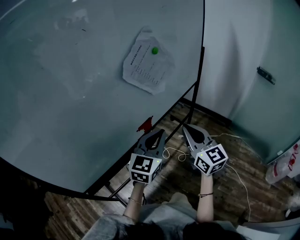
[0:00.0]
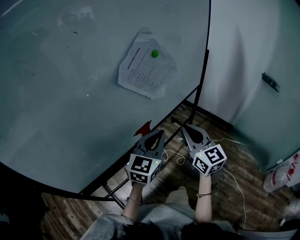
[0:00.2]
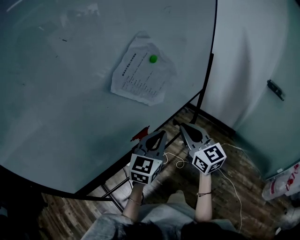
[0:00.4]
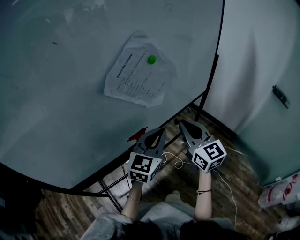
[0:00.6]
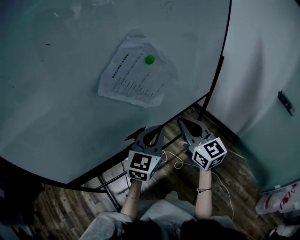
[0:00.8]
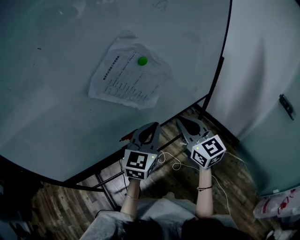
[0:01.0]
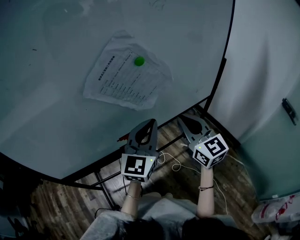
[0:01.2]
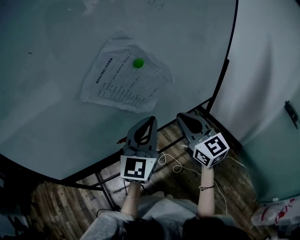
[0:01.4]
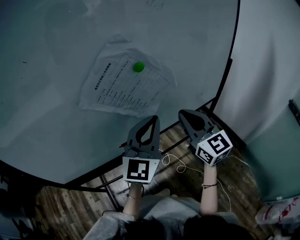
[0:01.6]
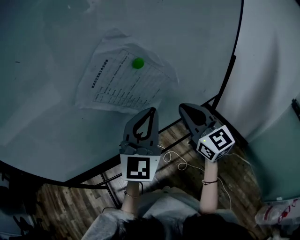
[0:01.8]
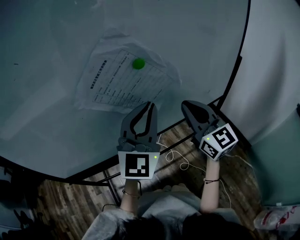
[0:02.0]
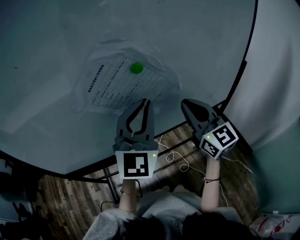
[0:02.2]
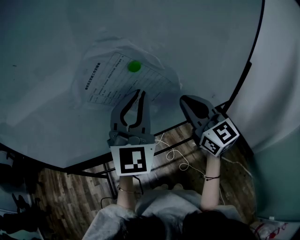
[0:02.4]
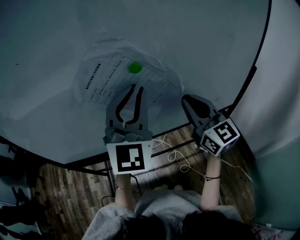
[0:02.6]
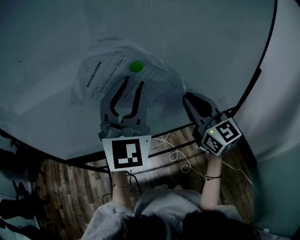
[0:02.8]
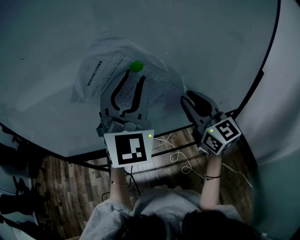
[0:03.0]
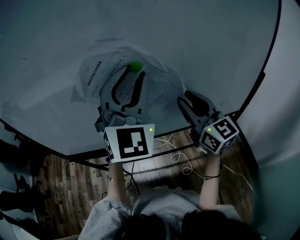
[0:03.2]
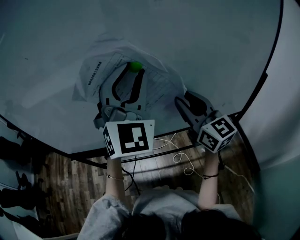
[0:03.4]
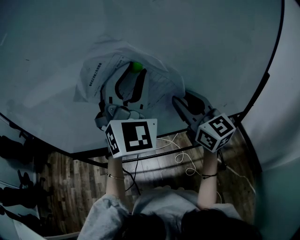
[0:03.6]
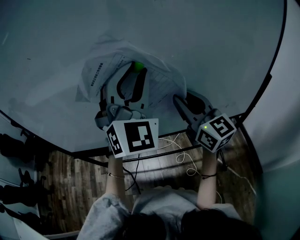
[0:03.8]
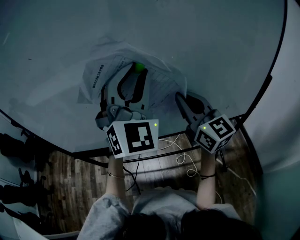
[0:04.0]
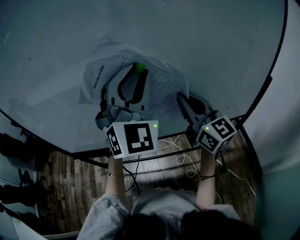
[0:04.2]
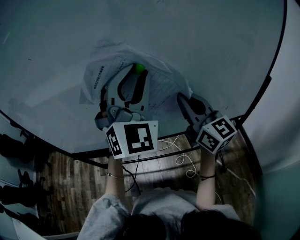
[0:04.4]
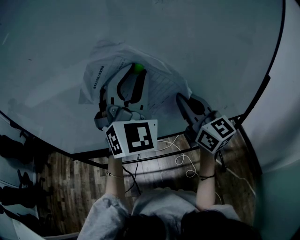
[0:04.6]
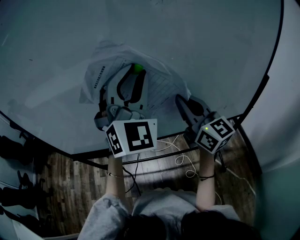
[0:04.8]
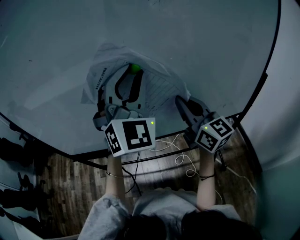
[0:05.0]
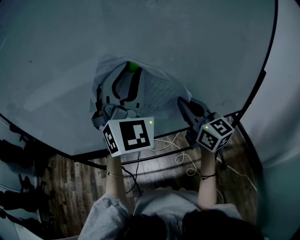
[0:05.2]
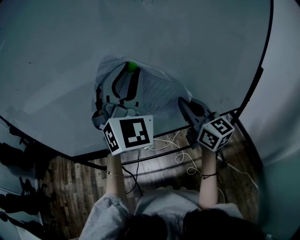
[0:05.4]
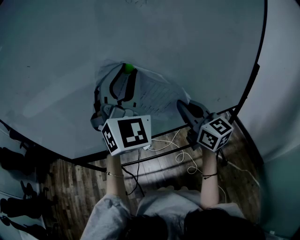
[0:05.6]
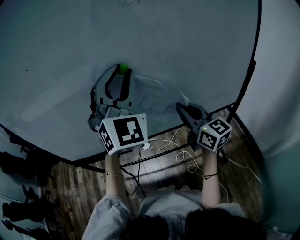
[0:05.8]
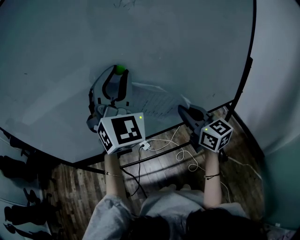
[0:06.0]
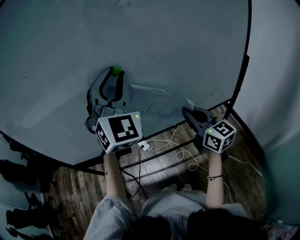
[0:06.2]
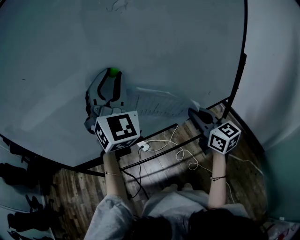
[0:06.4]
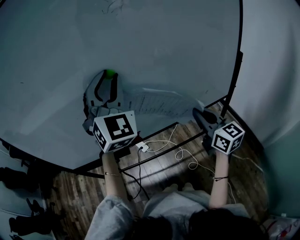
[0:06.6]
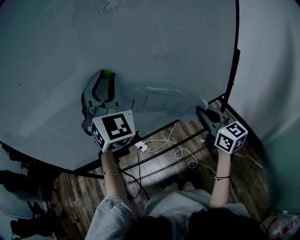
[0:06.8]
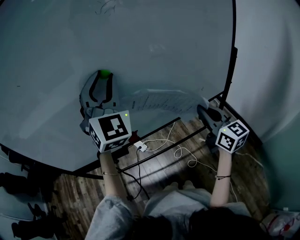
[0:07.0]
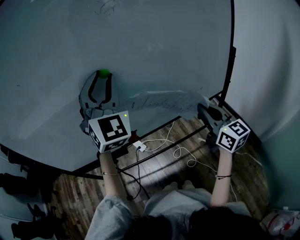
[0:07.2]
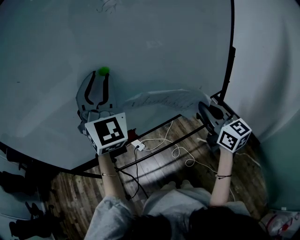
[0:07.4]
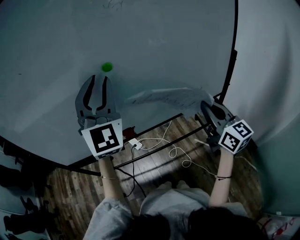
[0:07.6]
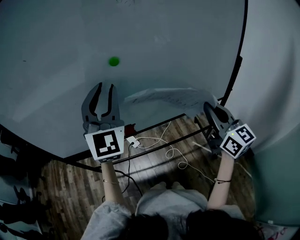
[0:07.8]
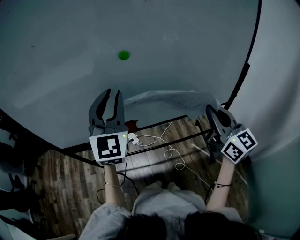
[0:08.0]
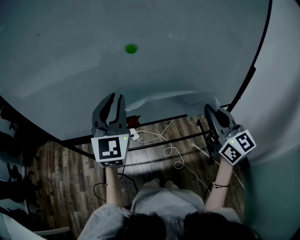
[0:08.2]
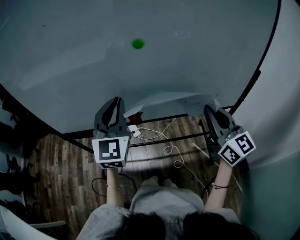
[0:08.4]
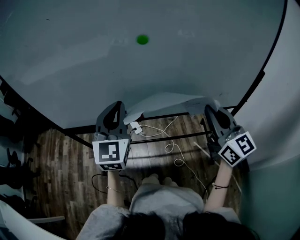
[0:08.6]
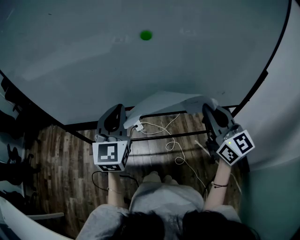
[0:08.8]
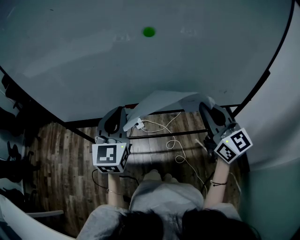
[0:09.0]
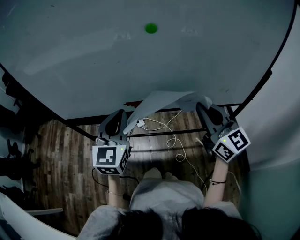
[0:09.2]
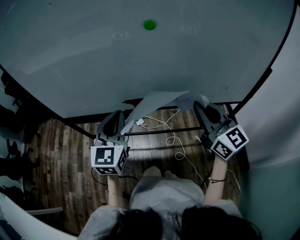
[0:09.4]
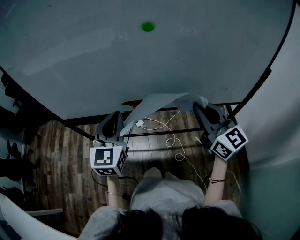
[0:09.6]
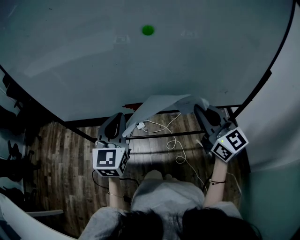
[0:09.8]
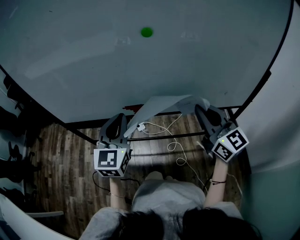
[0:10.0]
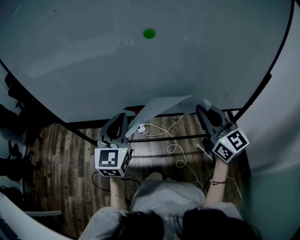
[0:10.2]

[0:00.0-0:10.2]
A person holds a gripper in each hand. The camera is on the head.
0:00.0 to 0:01.4: The right gripper goes approximately 20 cm forward and to the right, and swivels approximately 20 degrees; the left gripper heads forward, to the right and upward, covering about 15 cm, and changes its angle by roughly 30 degrees.
0:01.4 to 0:03.0: The left gripper is displaced upward and forward by about 15 cm, rotates approximately 50 degrees, and opens up, while the right gripper heads forward, covering some 10 cm.
0:03.0 to 0:04.4: The right gripper closes.
0:04.4 to 0:05.8: The right gripper shifts about 5 cm downward.
0:05.8 to 0:07.2: The right gripper goes approximately 15 cm to the right and backward.
0:07.2 to 0:08.8: The right gripper is displaced to the left by roughly 5 cm; the left gripper moves downward, to the left and backward, some 20 cm, swivels some 40 degrees, and closes its fingers.
0:08.8 to 0:10.2: There are only small adjustments of the grippers.

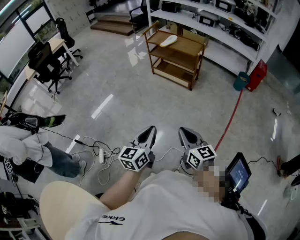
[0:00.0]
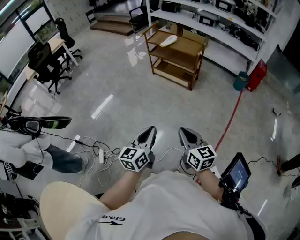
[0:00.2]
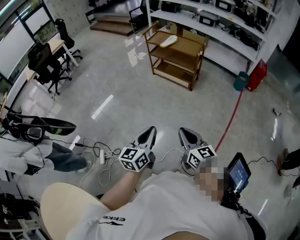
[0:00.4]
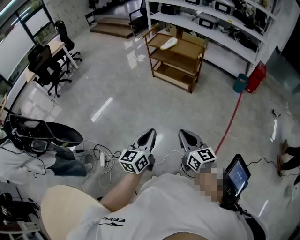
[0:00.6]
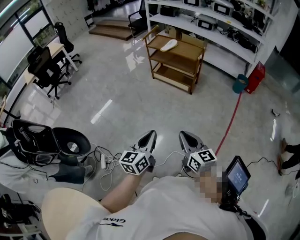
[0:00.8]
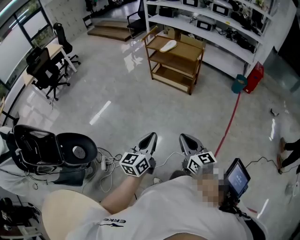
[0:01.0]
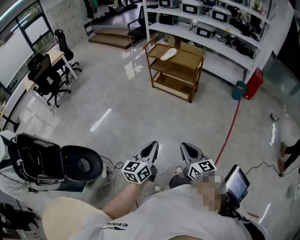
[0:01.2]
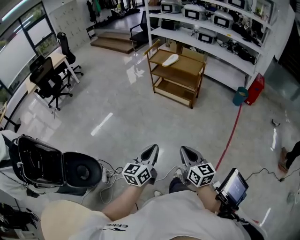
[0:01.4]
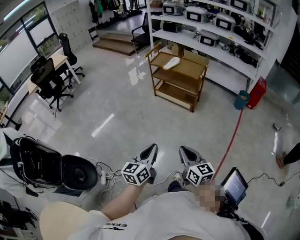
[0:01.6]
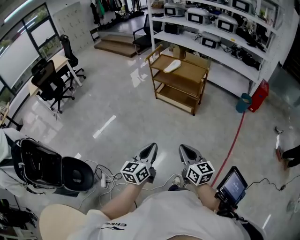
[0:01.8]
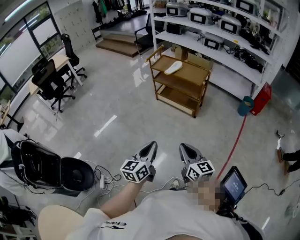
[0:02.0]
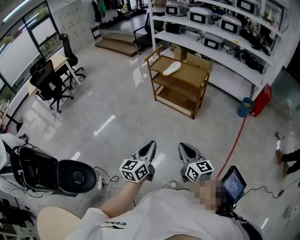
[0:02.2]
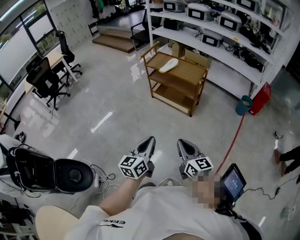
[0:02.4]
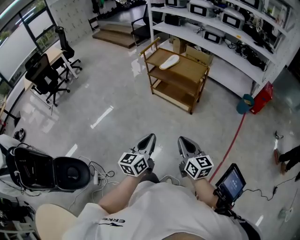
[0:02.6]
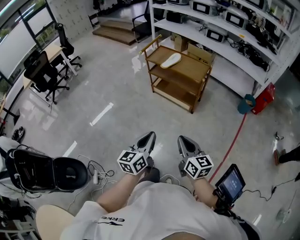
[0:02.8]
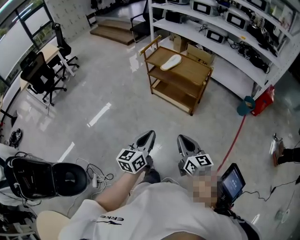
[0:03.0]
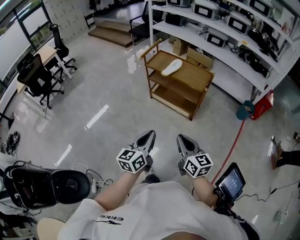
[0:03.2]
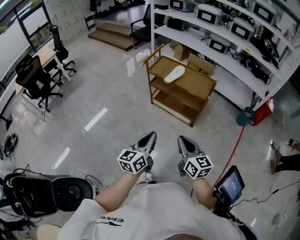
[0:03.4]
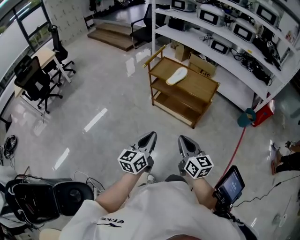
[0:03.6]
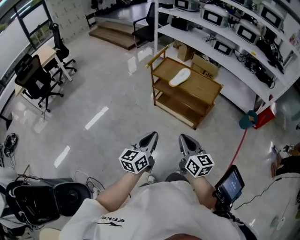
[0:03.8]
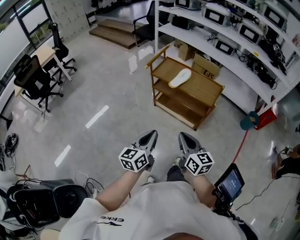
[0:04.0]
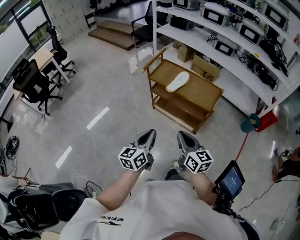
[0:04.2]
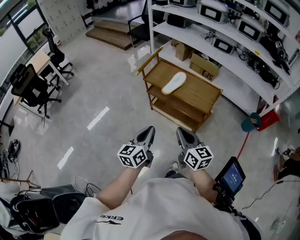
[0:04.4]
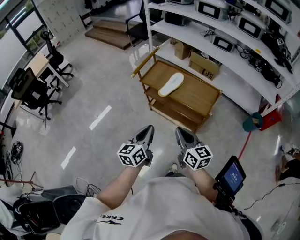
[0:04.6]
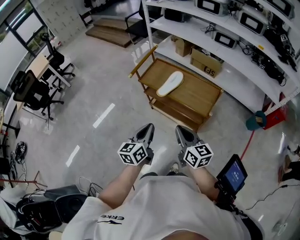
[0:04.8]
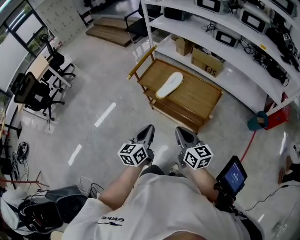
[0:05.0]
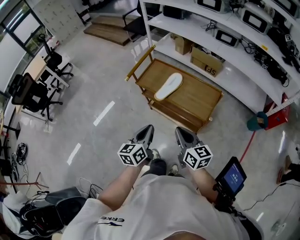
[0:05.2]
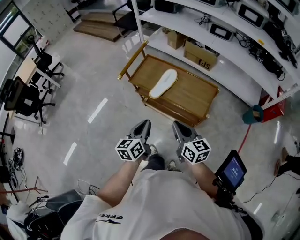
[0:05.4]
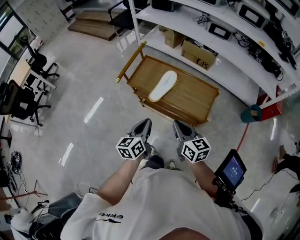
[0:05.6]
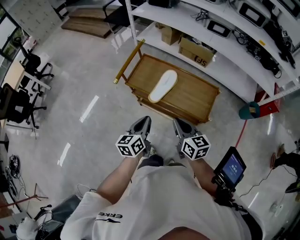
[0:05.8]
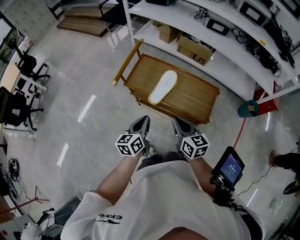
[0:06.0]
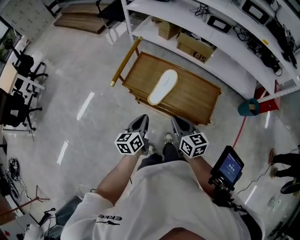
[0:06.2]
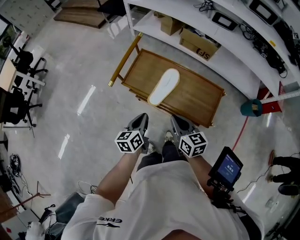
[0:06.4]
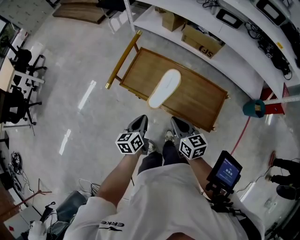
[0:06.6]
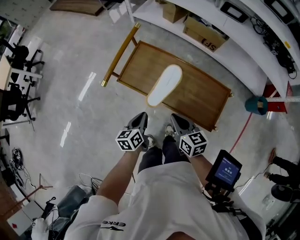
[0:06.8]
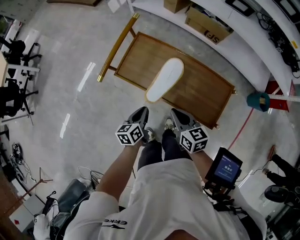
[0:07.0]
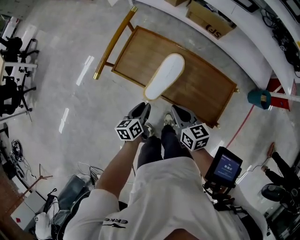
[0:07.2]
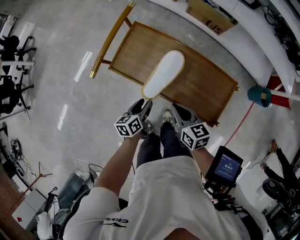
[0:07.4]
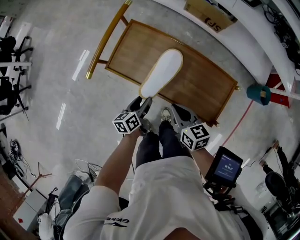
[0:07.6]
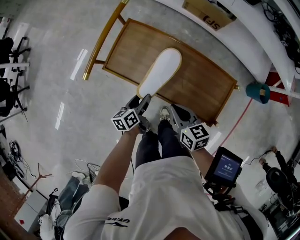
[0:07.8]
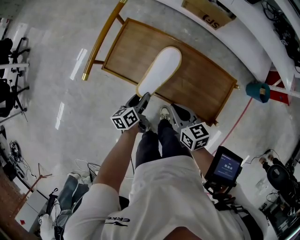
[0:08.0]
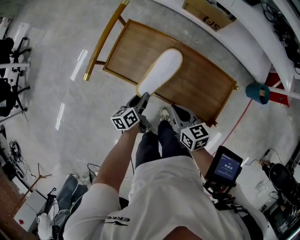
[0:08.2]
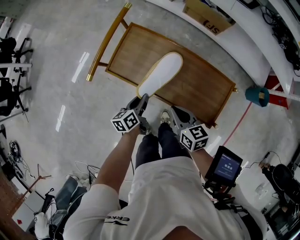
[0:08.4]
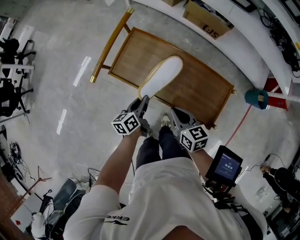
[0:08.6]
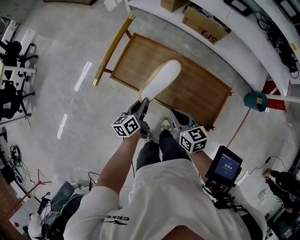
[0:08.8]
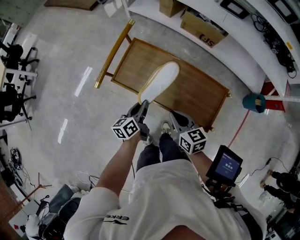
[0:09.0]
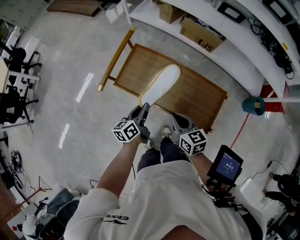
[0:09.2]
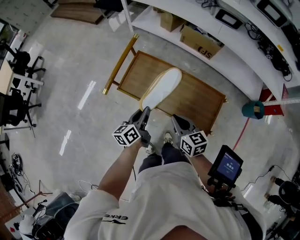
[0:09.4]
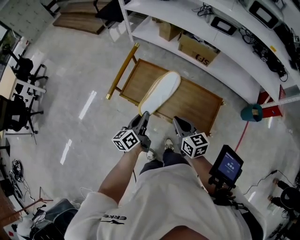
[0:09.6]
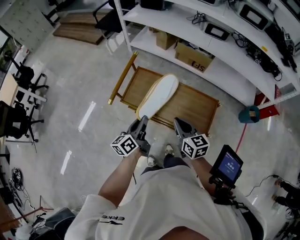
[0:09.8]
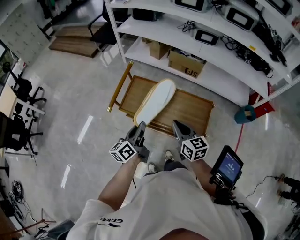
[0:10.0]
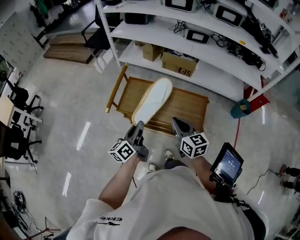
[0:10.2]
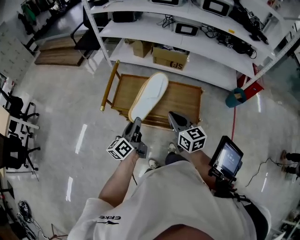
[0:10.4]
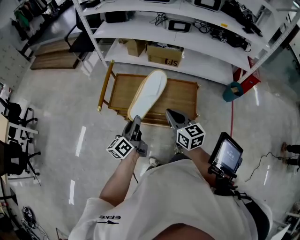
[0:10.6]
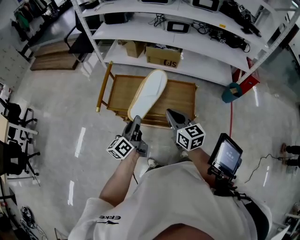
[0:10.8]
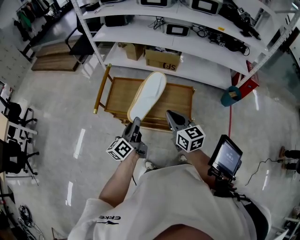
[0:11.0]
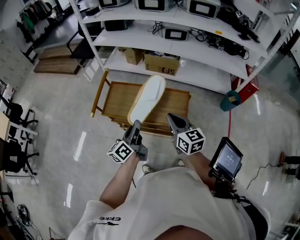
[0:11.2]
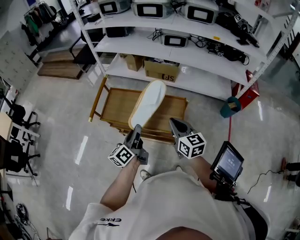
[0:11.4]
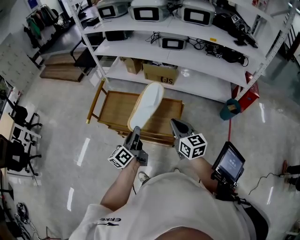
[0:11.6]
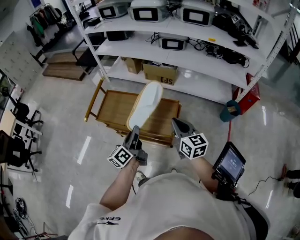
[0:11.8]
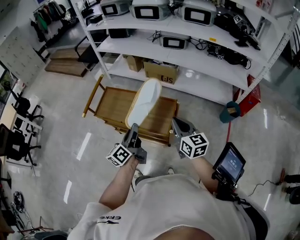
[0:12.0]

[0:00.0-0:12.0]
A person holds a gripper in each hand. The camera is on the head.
0:00.0 to 0:01.6: The two grippers go roughly 5 cm forward.
0:01.6 to 0:03.0: Both grippers move forward, about 25 cm.
0:03.0 to 0:04.4: Both grippers travel together forward, approximately 30 cm.
0:04.4 to 0:06.0: The two grippers go some 25 cm forward.
0:06.0 to 0:07.6: Both grippers move downward and forward, some 25 cm. The left gripper rotates roughly 20 degrees, and opens its fingers.
0:07.6 to 0:09.0: The left gripper heads upward, covering some 10 cm, and closes its fingers.
0:09.0 to 0:10.4: Both grippers travel together upward and backward, roughly 20 cm. The right gripper turns by approximately 20 degrees. The left gripper changes its angle by about 20 degrees.
0:10.4 to 0:12.0: The two grippers go about 25 cm to the right.

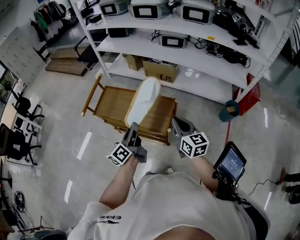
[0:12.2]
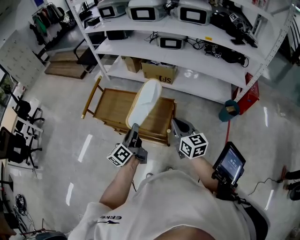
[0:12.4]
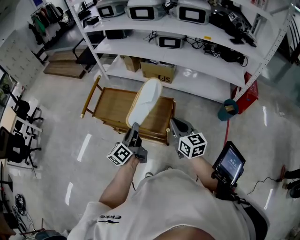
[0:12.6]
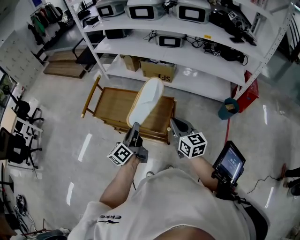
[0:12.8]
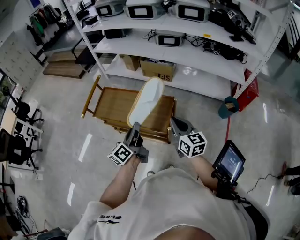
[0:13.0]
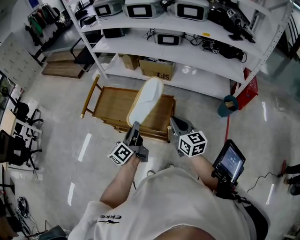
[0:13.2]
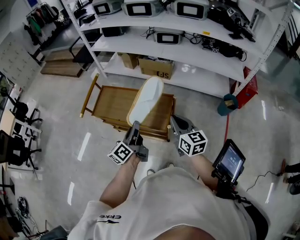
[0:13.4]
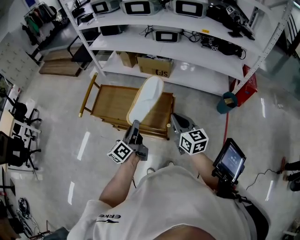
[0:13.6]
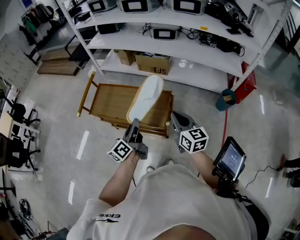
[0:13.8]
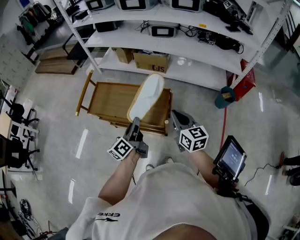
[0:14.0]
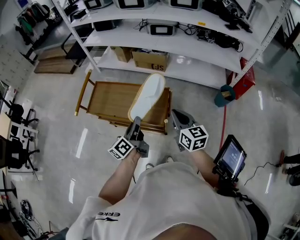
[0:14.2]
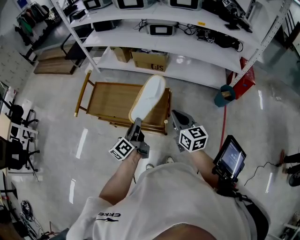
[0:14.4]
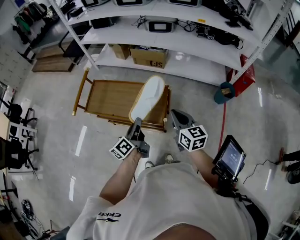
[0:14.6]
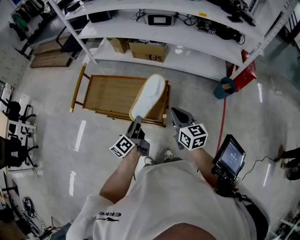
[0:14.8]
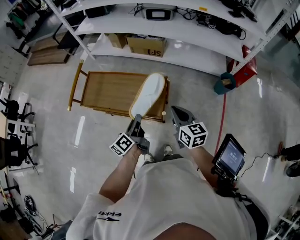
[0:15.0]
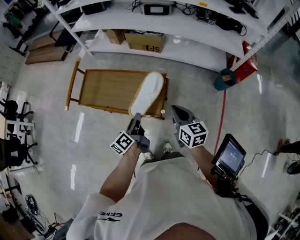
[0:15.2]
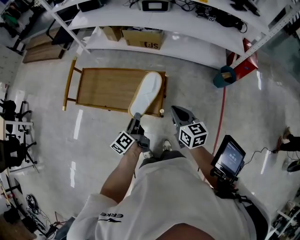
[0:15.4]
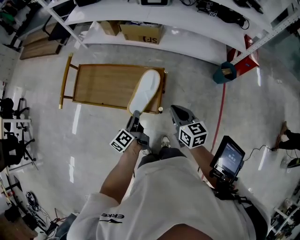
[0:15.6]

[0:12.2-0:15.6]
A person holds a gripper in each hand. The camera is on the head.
0:12.2 to 0:13.8: There are only small adjustments of the grippers.
0:13.8 to 0:15.6: The two grippers go some 10 cm downward.
